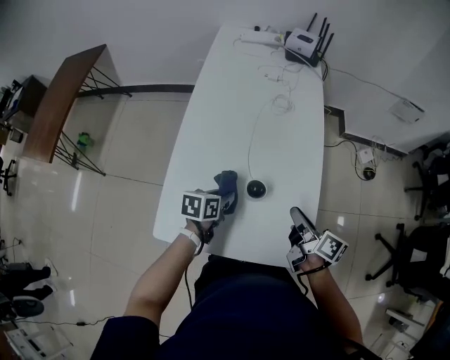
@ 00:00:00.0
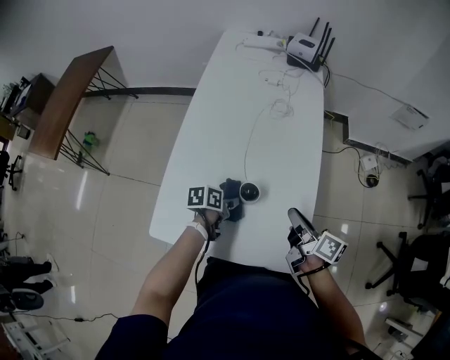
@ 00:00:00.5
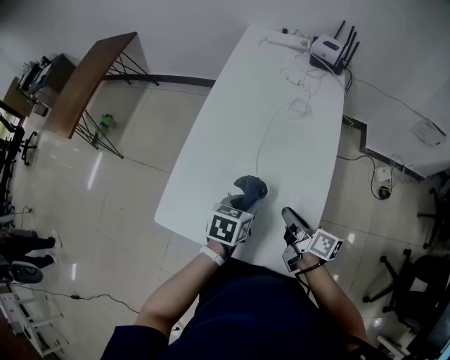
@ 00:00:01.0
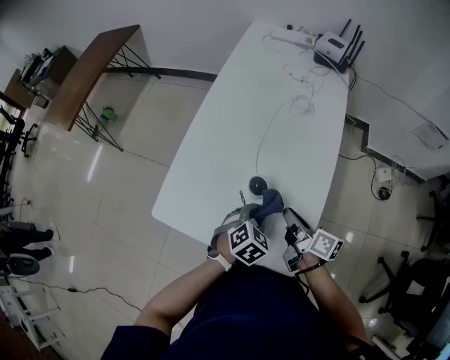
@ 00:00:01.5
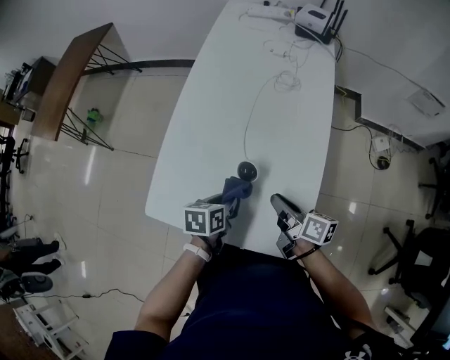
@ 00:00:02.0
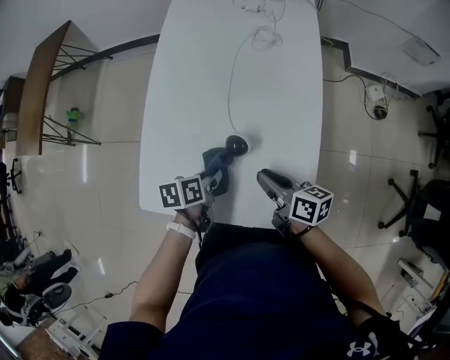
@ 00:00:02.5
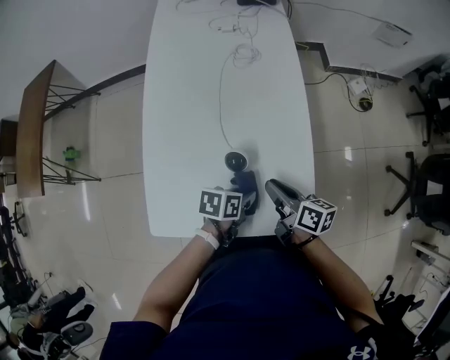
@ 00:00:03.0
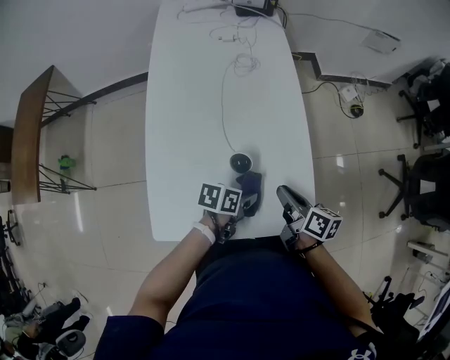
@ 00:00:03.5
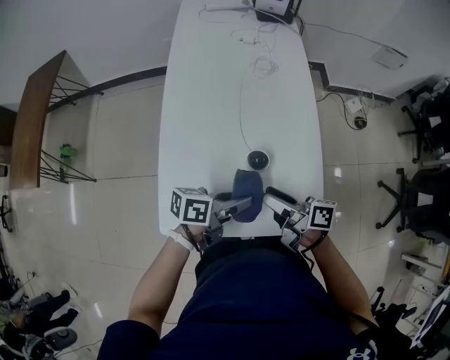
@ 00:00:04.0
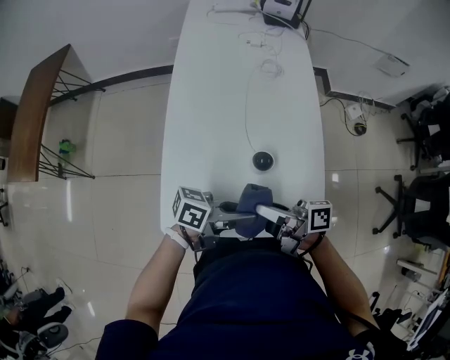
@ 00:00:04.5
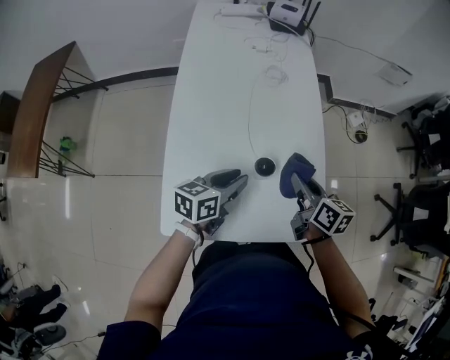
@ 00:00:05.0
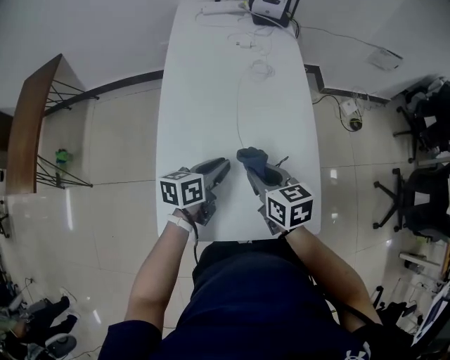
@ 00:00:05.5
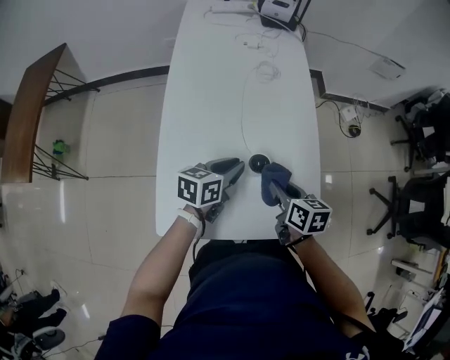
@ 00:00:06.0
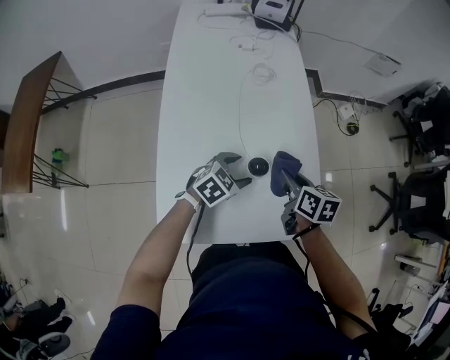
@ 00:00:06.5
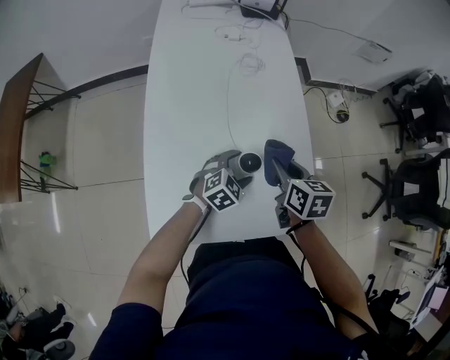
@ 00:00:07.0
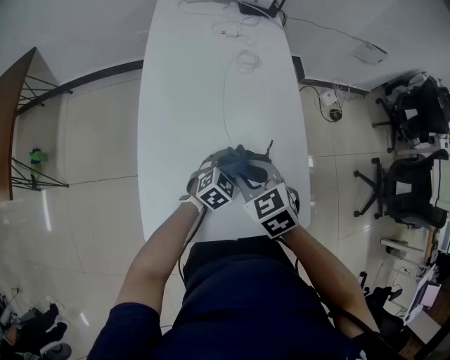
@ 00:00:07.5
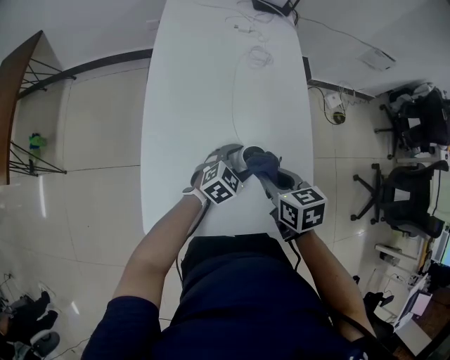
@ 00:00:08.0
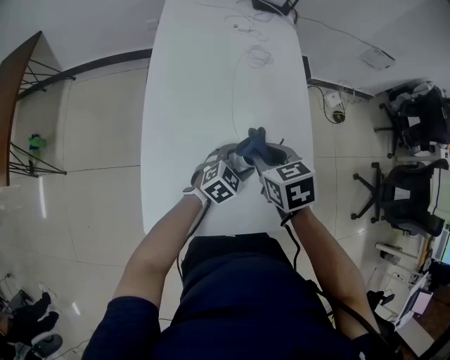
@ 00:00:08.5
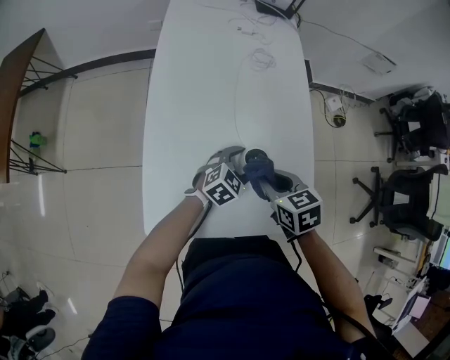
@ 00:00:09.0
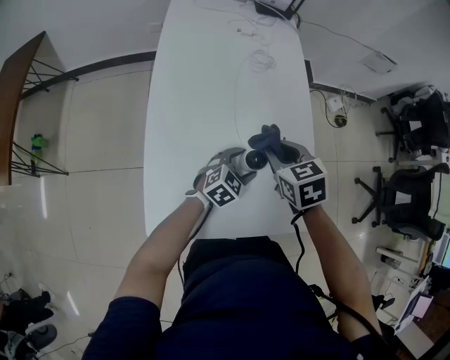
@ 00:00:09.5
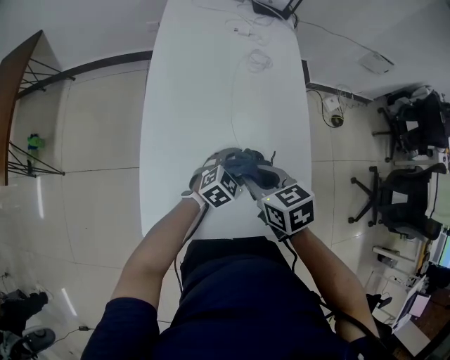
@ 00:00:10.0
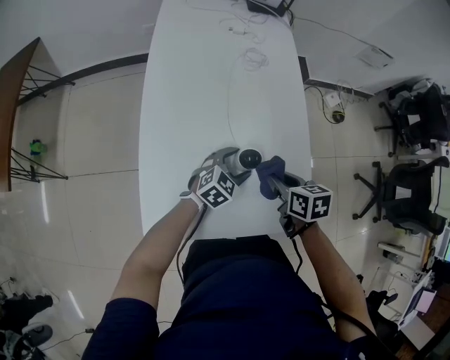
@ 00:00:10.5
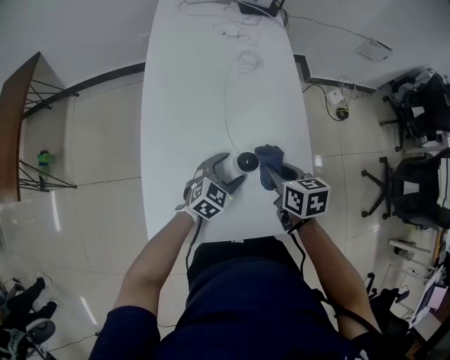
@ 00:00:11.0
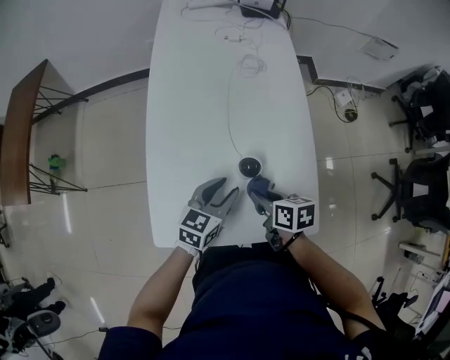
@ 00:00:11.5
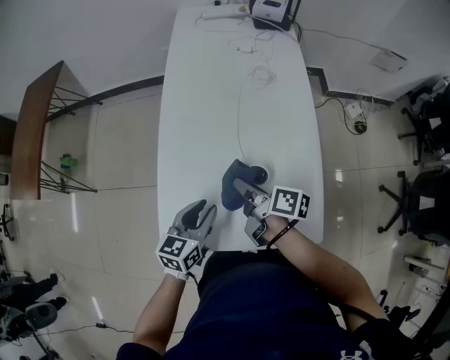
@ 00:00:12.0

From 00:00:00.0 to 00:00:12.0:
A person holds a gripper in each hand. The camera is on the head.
From 00:00:00.0 to 00:00:02.0: The left gripper shifts some 5 cm backward, and travels to the right and back again, about 10 cm each way, while the right gripper is displaced downward by roughly 5 cm.
From 00:00:02.0 to 00:00:04.0: The right gripper moves roughly 10 cm, and opens. The left gripper is displaced upward by roughly 10 cm, and angles its fingers upward, by approximately 40 degrees.
From 00:00:04.0 to 00:00:06.0: The right gripper changes its angle by about 40 degrees, and closes. Meanwhile the left gripper moves roughly 10 cm, and turns by roughly 30 degrees.
From 00:00:06.0 to 00:00:08.0: The left gripper moves downward and to the right, about 10 cm, twists roughly 40 degrees clockwise, seen from behind, and opens its fingers; the right gripper moves some 10 cm to the left and comes back.
From 00:00:08.0 to 00:00:10.0: The right gripper goes forward and backward, some 10 cm each way, reversing 3 times.
From 00:00:10.0 to 00:00:12.0: The right gripper travels to the right and back again, about 10 cm each way, and rolls clockwise, seen from behind, by roughly 50 degrees. Meanwhile the left gripper moves to the left, upward and backward, some 20 cm, swivels some 40 degrees, and closes up.

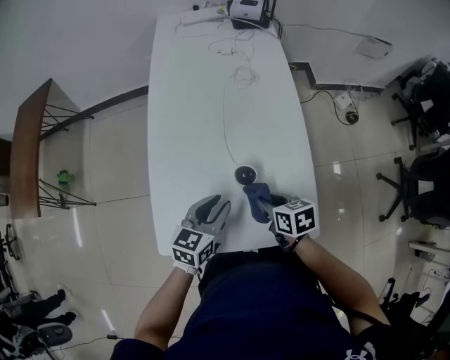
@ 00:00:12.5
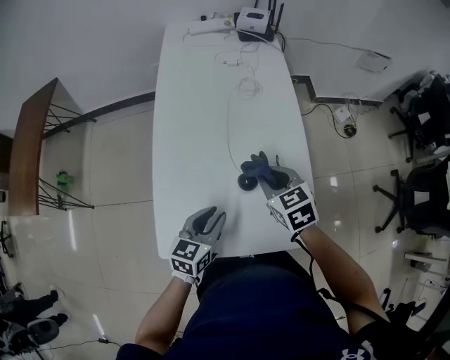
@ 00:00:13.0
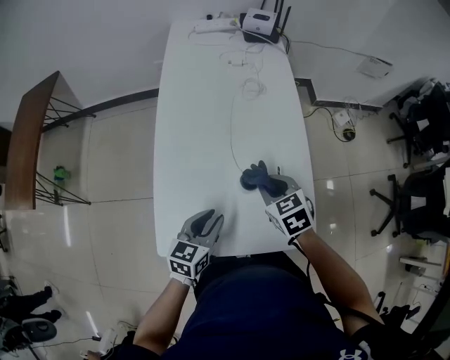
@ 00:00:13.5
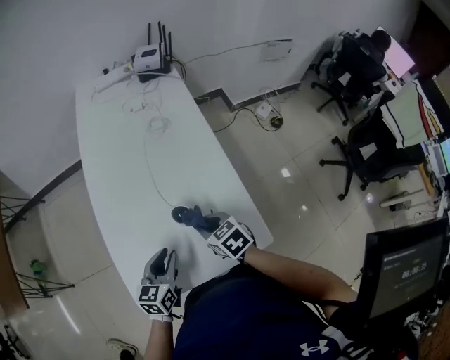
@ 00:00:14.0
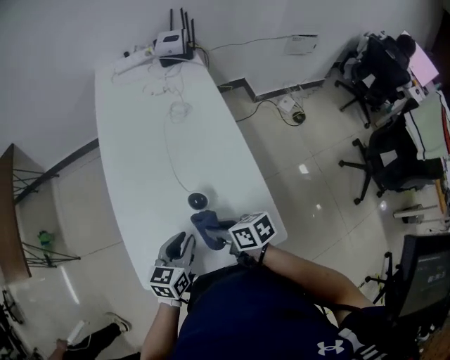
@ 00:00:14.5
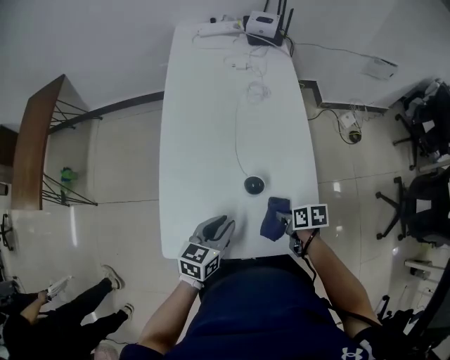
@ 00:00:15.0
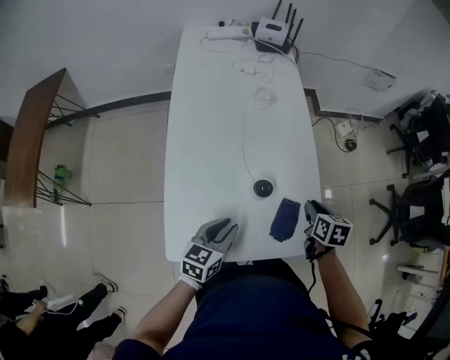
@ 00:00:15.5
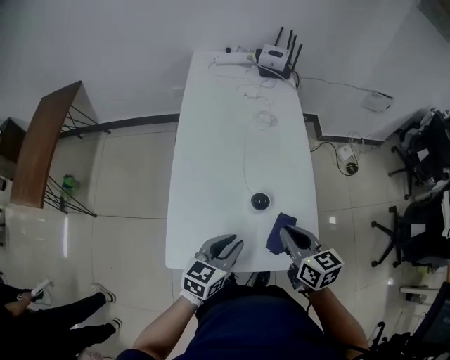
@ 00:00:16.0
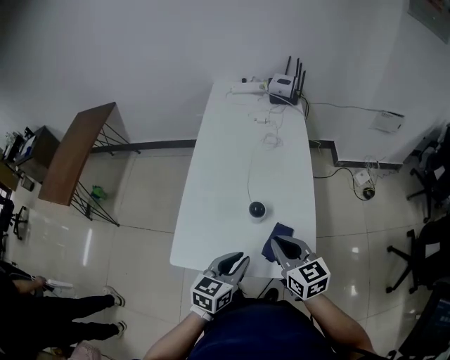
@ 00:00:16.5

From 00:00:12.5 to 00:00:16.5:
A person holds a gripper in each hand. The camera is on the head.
From 00:00:12.5 to 00:00:14.5: The right gripper travels forward and back again, about 10 cm each way.
From 00:00:14.5 to 00:00:16.5: The right gripper heads upward, covering approximately 10 cm, and changes its angle by about 40 degrees; the left gripper changes place by roughly 10 cm.

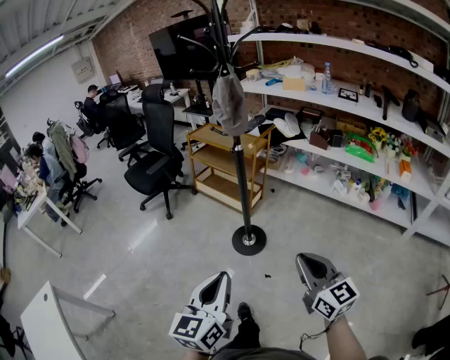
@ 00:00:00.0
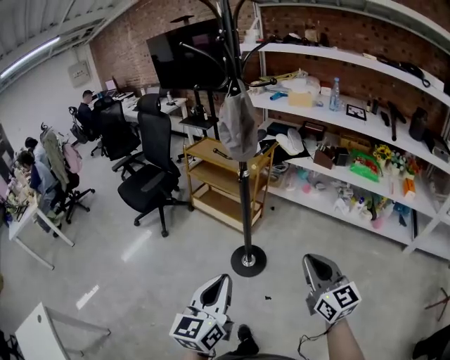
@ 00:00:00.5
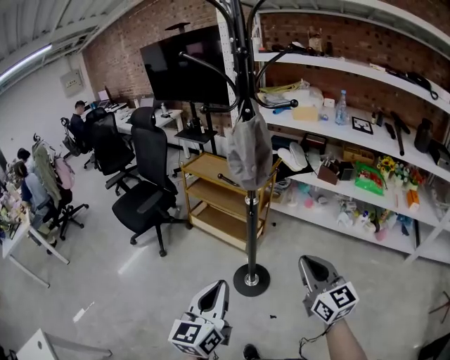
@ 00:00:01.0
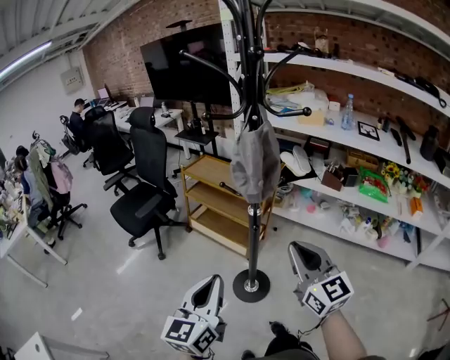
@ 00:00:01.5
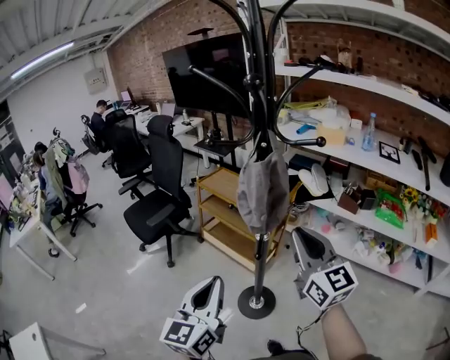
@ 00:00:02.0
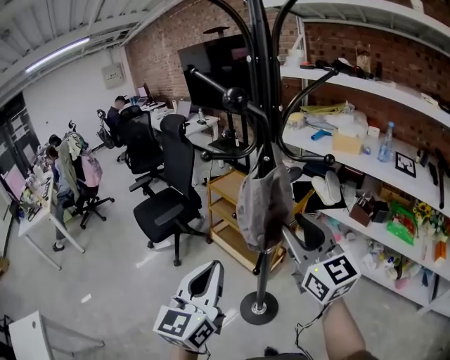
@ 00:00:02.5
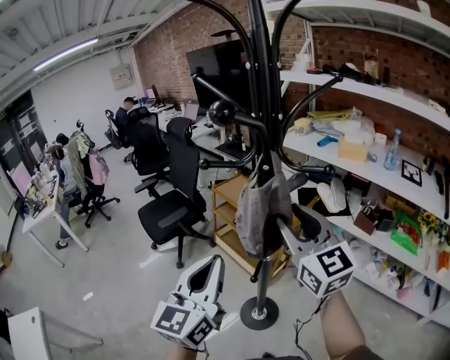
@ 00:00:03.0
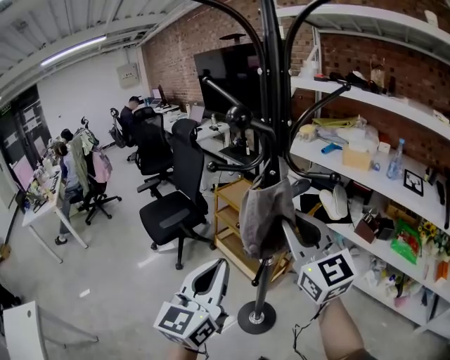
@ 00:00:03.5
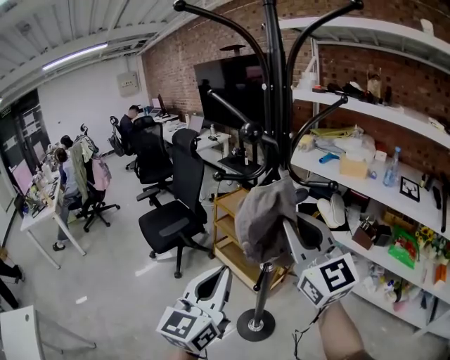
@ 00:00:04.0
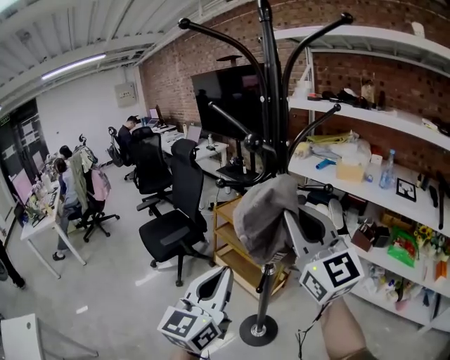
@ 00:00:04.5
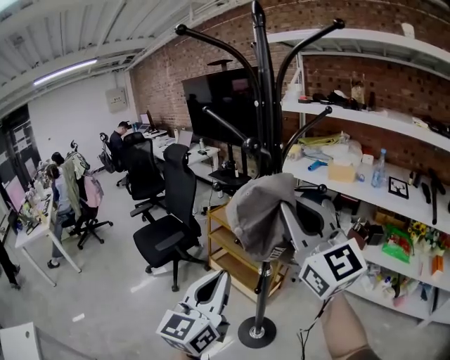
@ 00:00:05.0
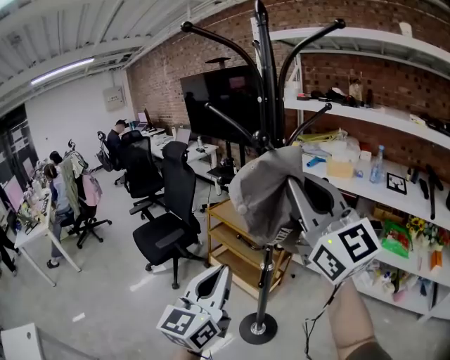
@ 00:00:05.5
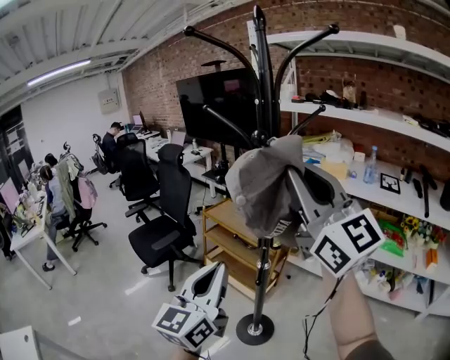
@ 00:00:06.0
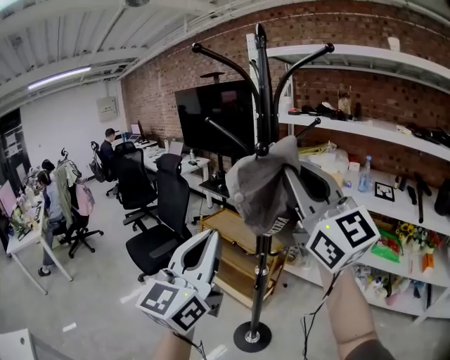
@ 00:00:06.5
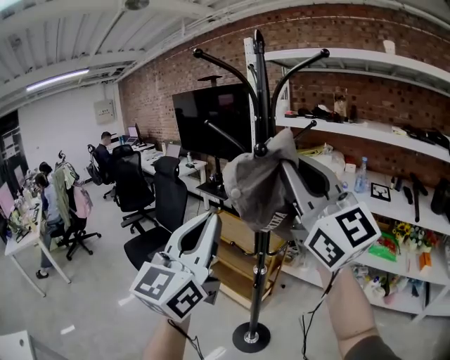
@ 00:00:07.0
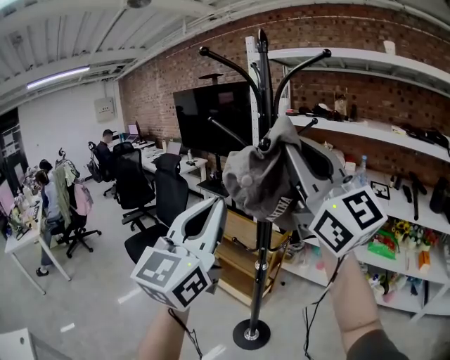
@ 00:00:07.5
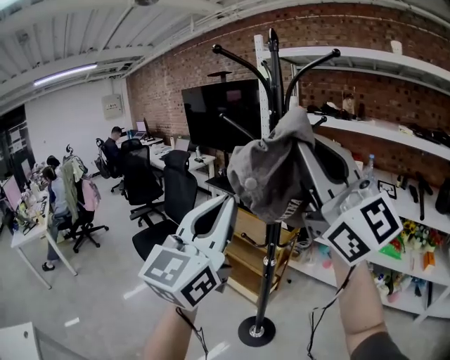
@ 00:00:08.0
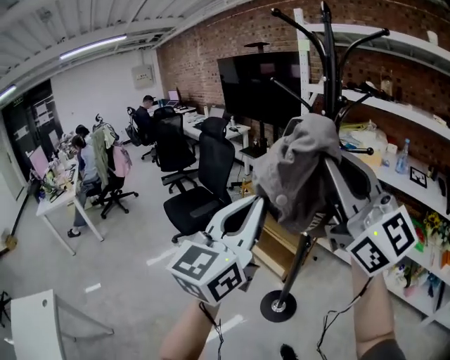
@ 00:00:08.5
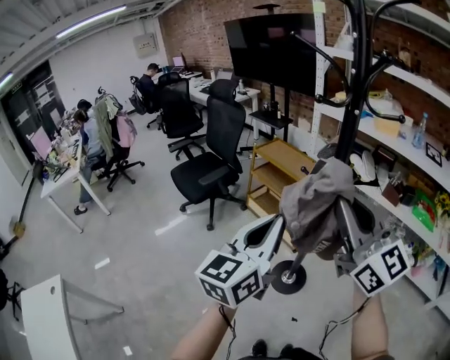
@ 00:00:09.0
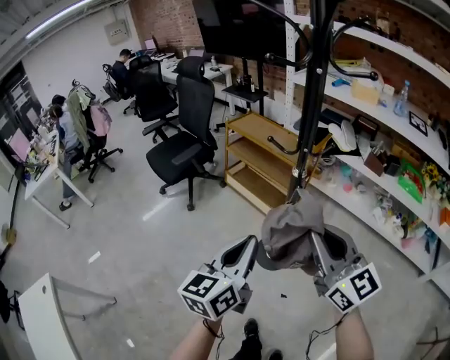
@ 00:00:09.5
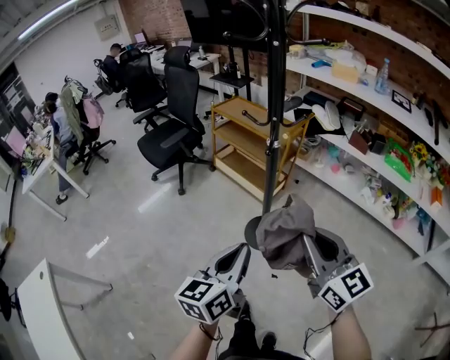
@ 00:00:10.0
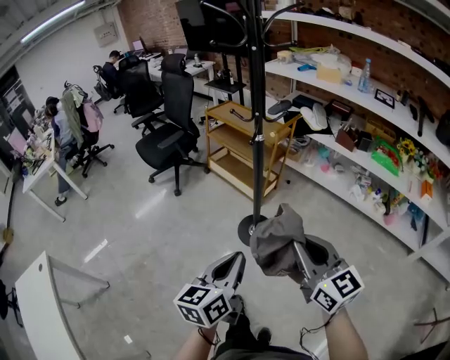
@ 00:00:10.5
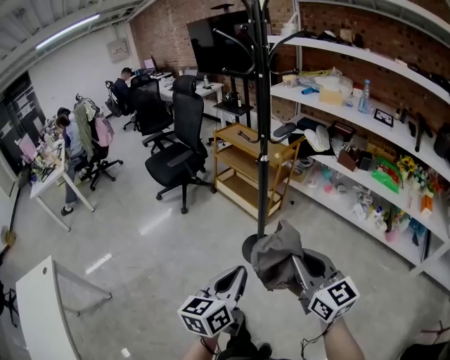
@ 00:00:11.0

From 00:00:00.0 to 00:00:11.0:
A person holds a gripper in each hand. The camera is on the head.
From 00:00:00.0 to 00:00:02.0: The two grippers go roughly 40 cm forward.
From 00:00:02.0 to 00:00:03.5: The grippers both shift upward and forward by about 10 cm. The right gripper opens, then closes once more.
From 00:00:03.5 to 00:00:05.5: The right gripper heads upward, covering approximately 15 cm.
From 00:00:05.5 to 00:00:07.5: The left gripper moves upward, some 20 cm; the right gripper heads upward and backward, covering about 10 cm.
From 00:00:07.5 to 00:00:09.0: The grippers both shift downward by some 25 cm. The left gripper swivels roughly 20 degrees. The right gripper turns by roughly 20 degrees.
From 00:00:09.0 to 00:00:11.0: The left gripper heads backward and downward, covering roughly 30 cm, and swivels some 20 degrees, while the right gripper shifts some 35 cm backward, downward and to the right, and changes its angle by about 20 degrees.
